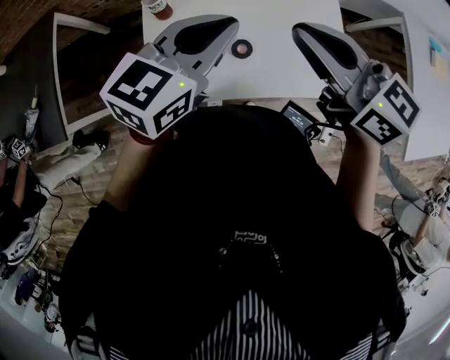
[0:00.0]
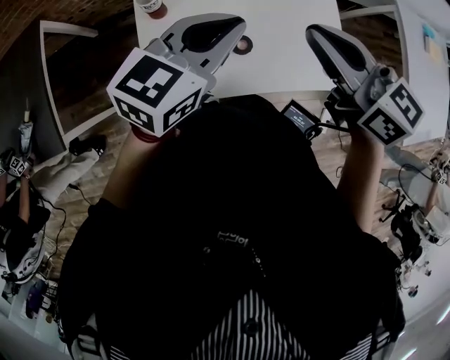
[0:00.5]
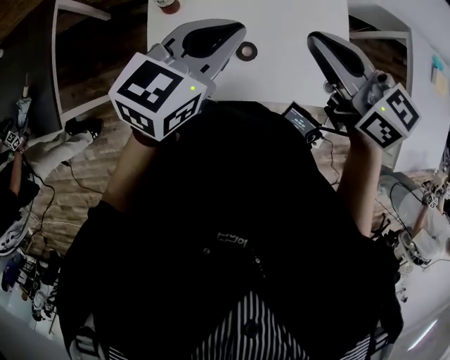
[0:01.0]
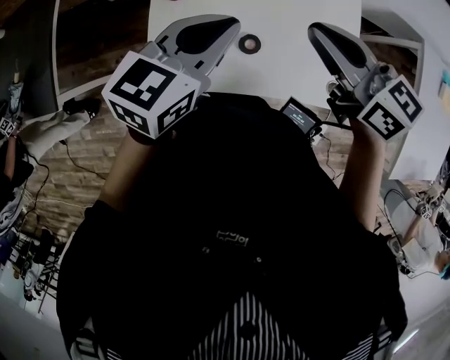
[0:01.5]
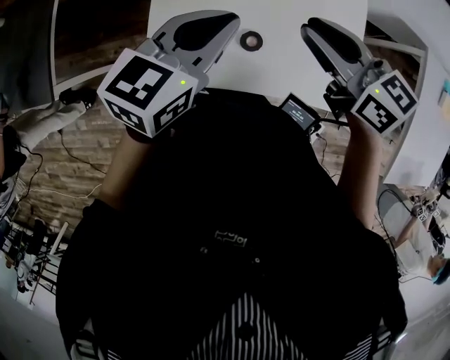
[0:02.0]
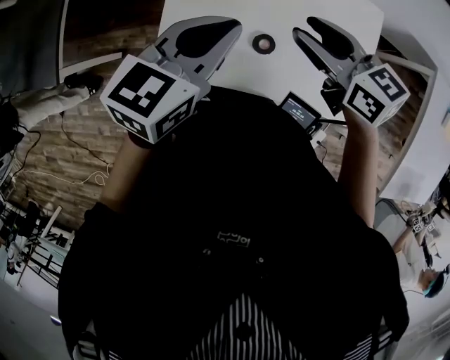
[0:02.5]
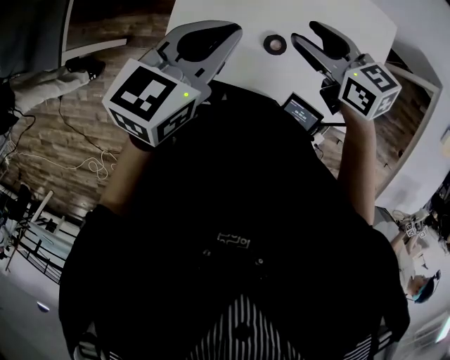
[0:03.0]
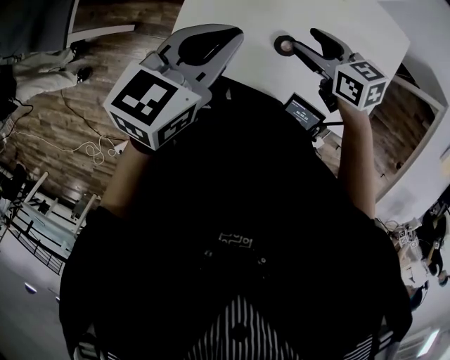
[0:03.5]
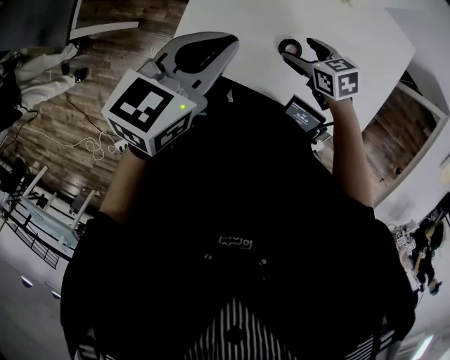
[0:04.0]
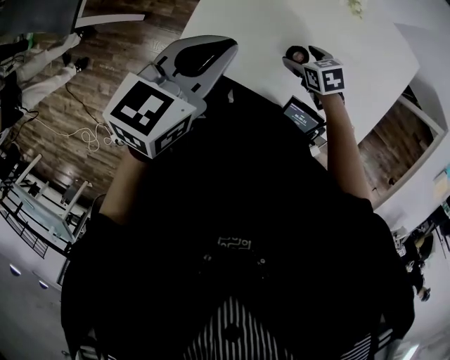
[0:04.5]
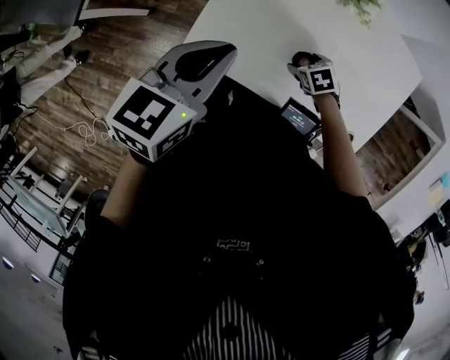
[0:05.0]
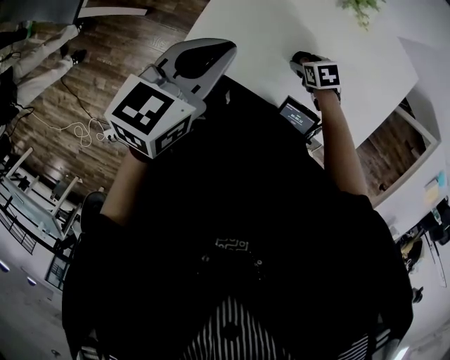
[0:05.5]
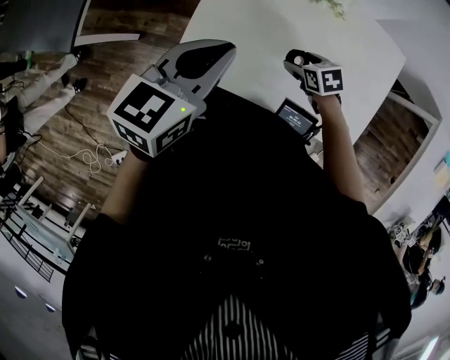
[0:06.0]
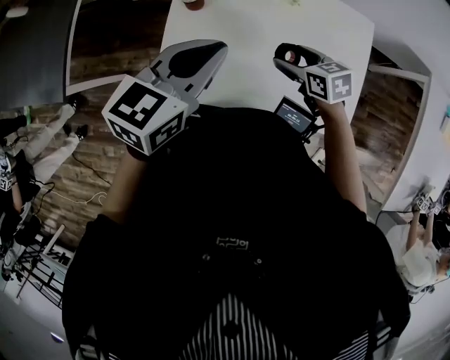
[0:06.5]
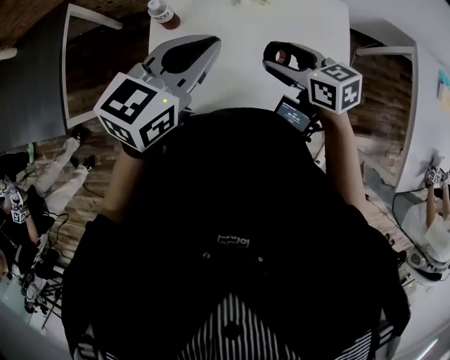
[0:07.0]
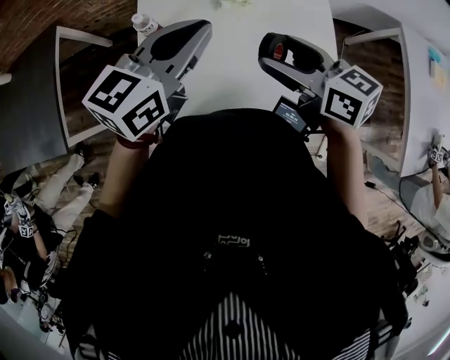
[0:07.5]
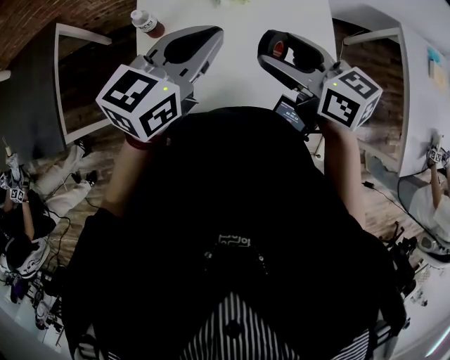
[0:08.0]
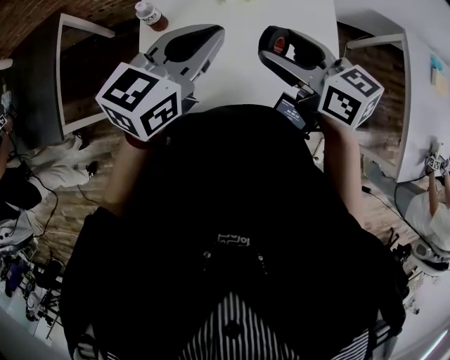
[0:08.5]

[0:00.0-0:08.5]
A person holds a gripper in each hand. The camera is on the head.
0:00.0 to 0:02.0: The right gripper heads downward, covering about 5 cm. The left gripper ends up approximately 5 cm from where it was.
0:02.0 to 0:04.0: The right gripper travels downward by approximately 25 cm, turns by approximately 30 degrees, and opens, while the left gripper goes some 10 cm backward.
0:04.0 to 0:06.5: The right gripper heads upward, covering roughly 5 cm.
0:06.5 to 0:08.5: The right gripper travels upward by roughly 20 cm, and changes its angle by roughly 30 degrees.

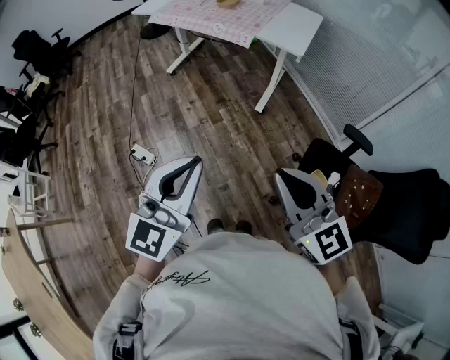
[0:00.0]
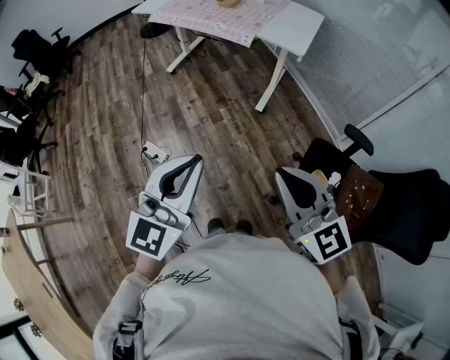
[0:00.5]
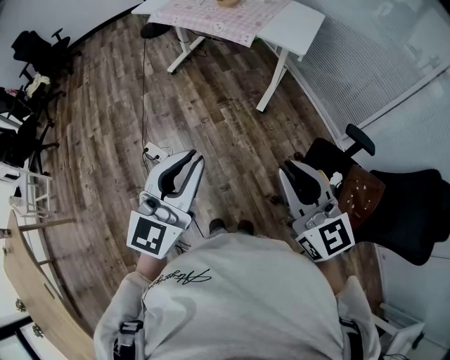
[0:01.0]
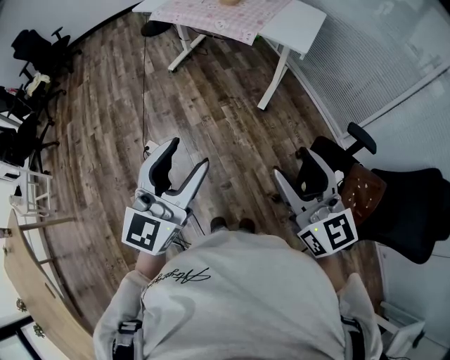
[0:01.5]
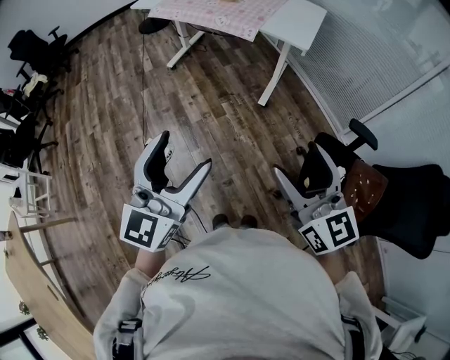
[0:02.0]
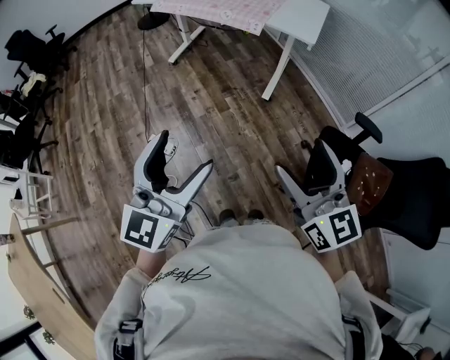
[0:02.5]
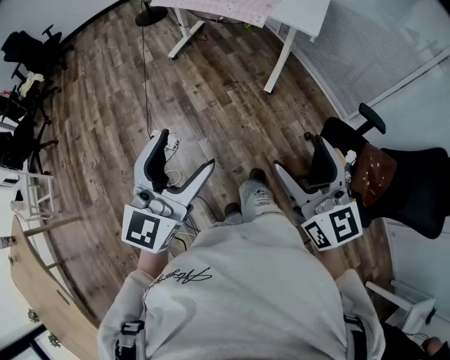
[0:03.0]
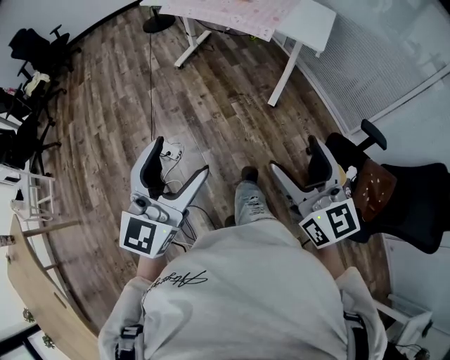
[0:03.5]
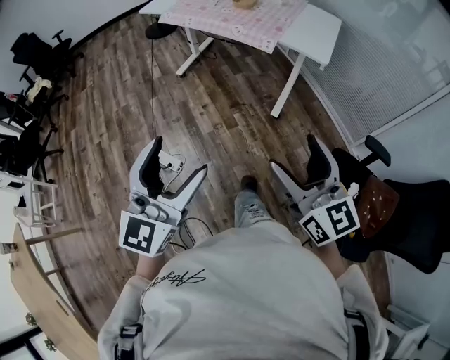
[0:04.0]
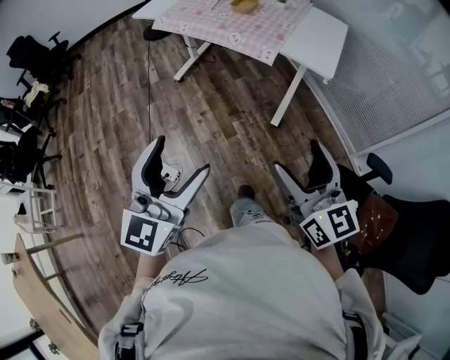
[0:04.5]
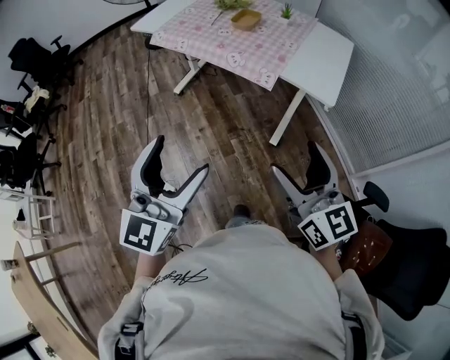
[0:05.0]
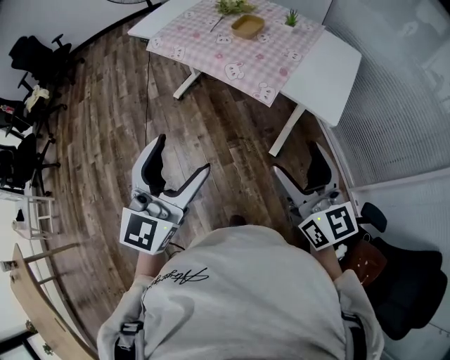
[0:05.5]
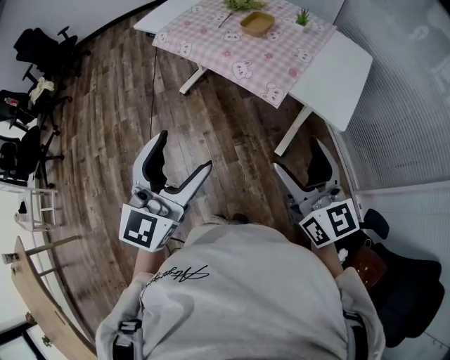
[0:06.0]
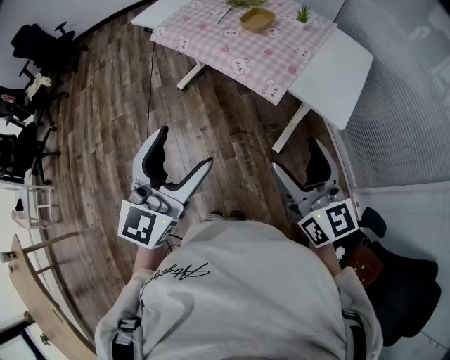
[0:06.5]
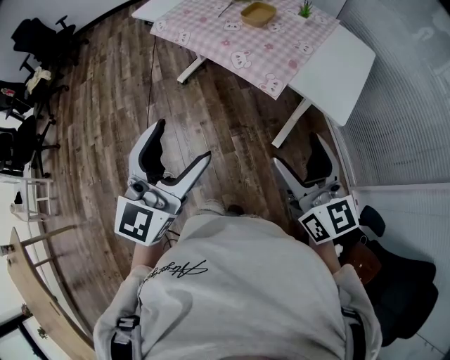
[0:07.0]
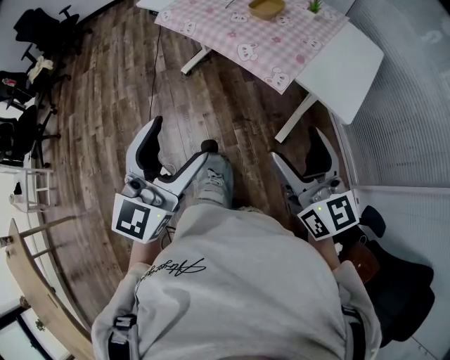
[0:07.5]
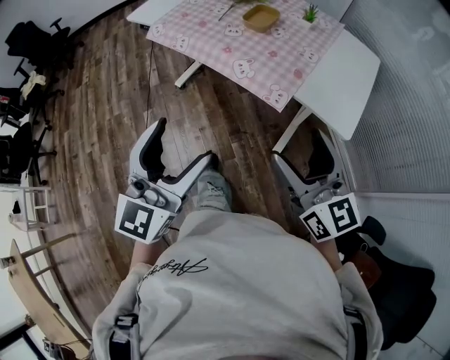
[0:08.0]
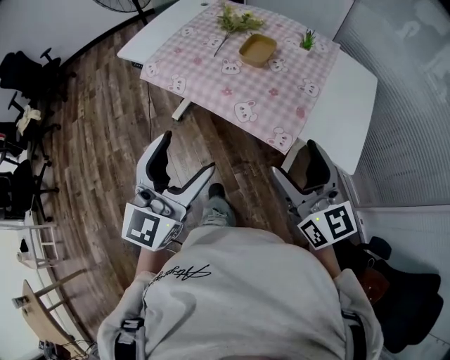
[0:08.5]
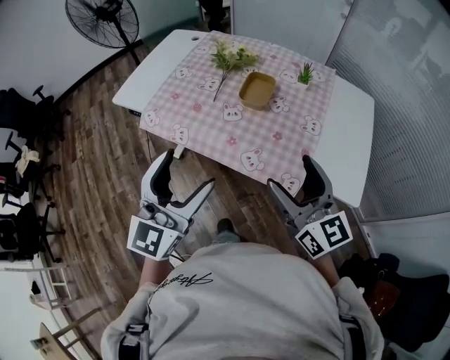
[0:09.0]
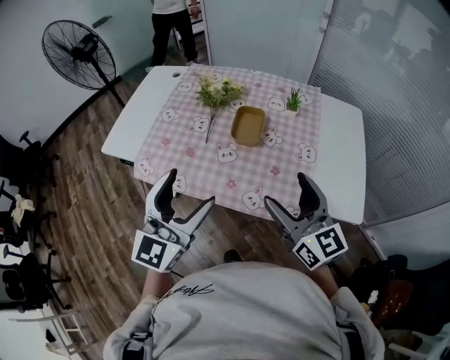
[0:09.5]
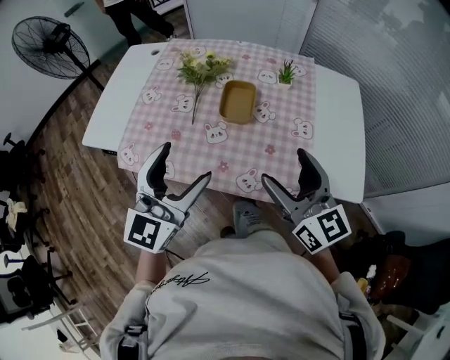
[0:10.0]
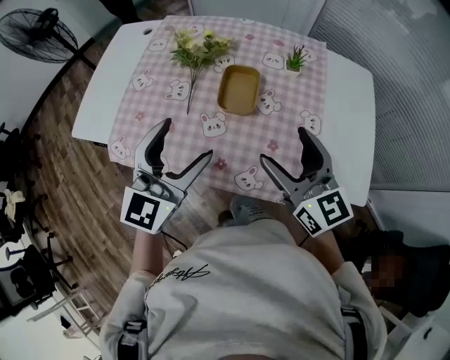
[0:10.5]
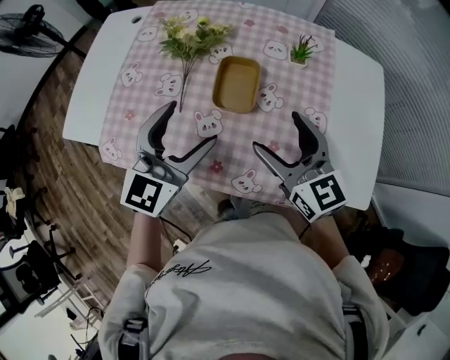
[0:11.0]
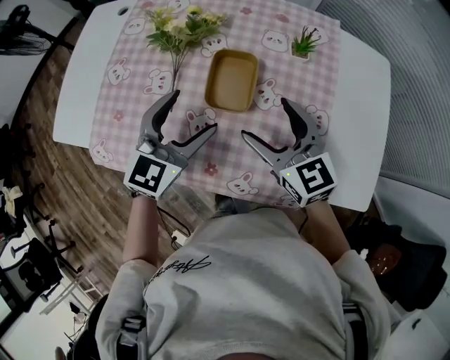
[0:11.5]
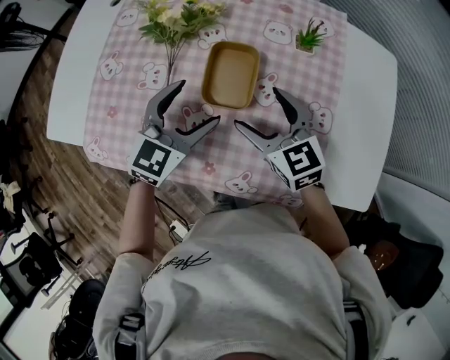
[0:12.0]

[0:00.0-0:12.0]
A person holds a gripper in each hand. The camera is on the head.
0:00.0 to 0:02.0: The left gripper moves some 5 cm, and opens up. The right gripper opens its fingers.
0:02.0 to 0:04.0: The left gripper moves to the left and forward, some 10 cm; the right gripper is displaced forward and to the left by about 10 cm.
0:04.0 to 0:06.0: Both grippers move forward, approximately 30 cm.
0:06.0 to 0:08.0: Both grippers travel together forward, roughly 5 cm.
0:08.0 to 0:10.0: Both grippers move forward, some 35 cm. The left gripper turns by some 20 degrees. Meanwhile the right gripper turns by roughly 20 degrees.
0:10.0 to 0:12.0: Both grippers move forward and downward, about 25 cm. The left gripper swivels some 30 degrees. Meanwhile the right gripper changes its angle by about 30 degrees.

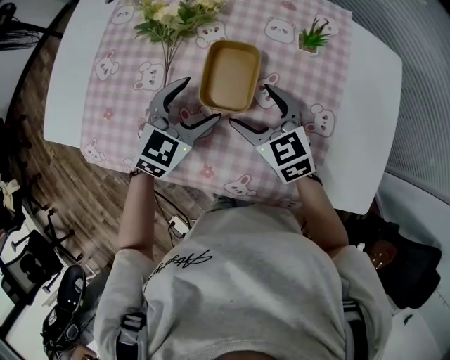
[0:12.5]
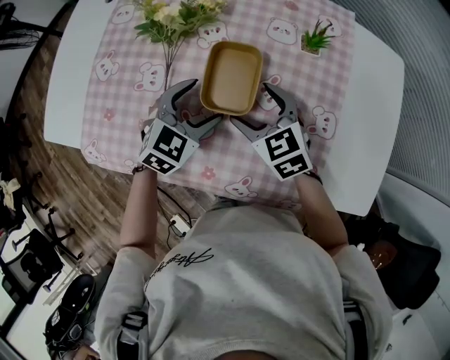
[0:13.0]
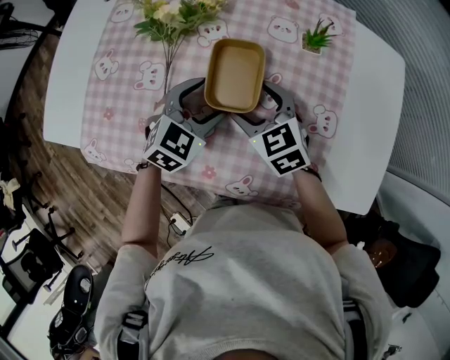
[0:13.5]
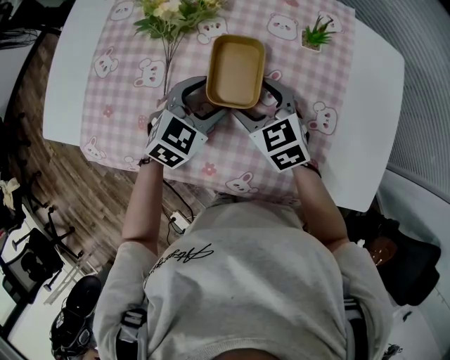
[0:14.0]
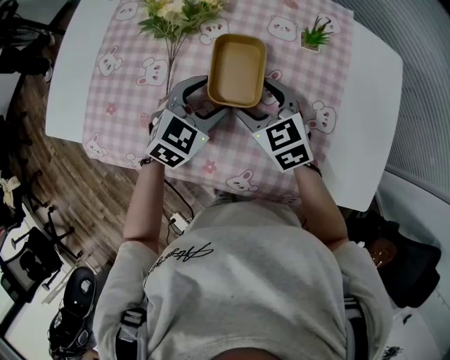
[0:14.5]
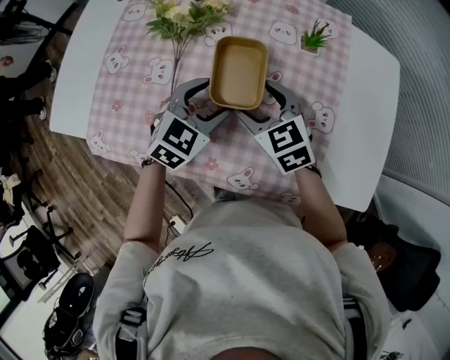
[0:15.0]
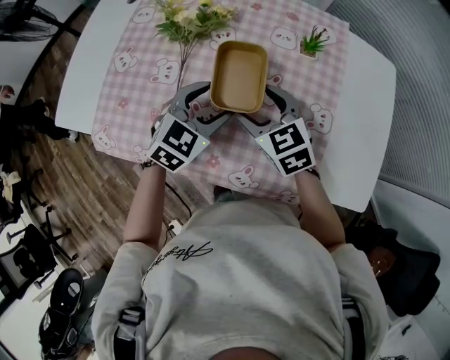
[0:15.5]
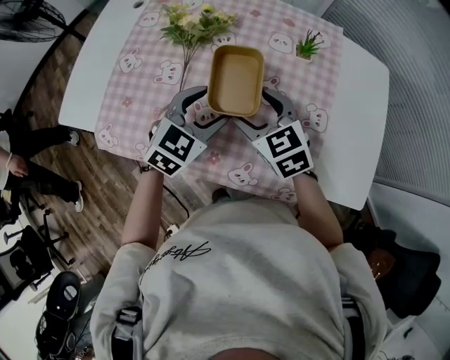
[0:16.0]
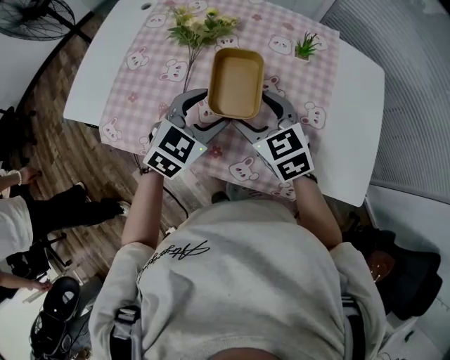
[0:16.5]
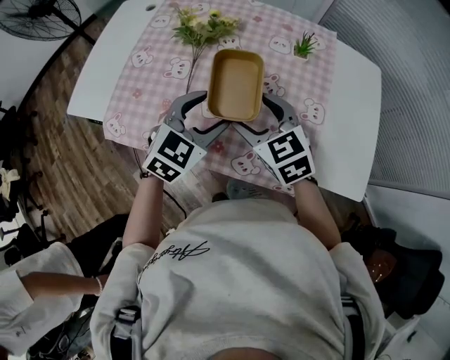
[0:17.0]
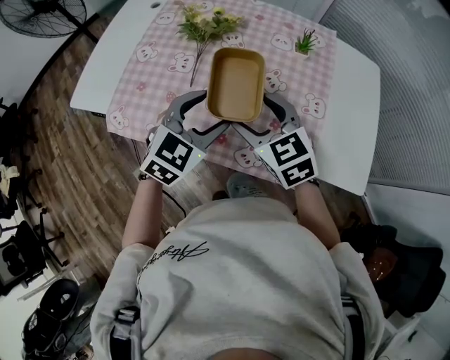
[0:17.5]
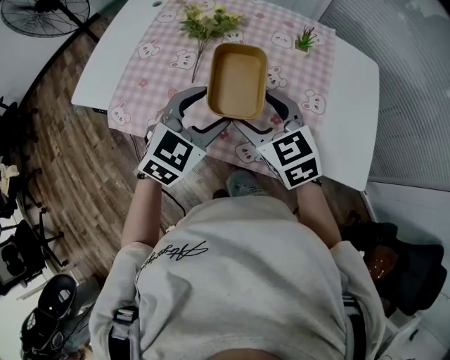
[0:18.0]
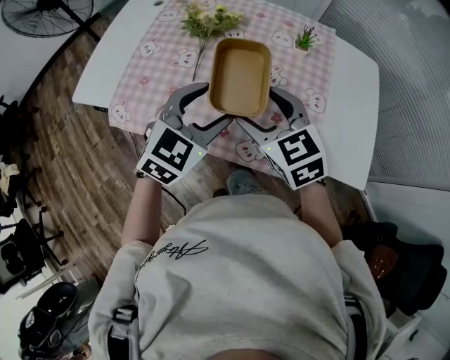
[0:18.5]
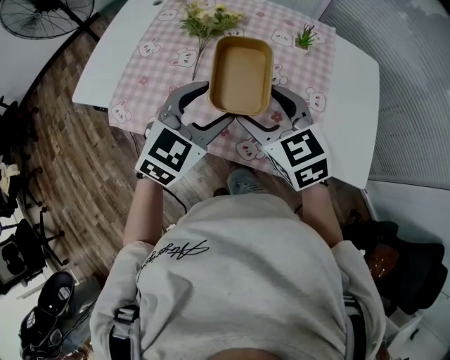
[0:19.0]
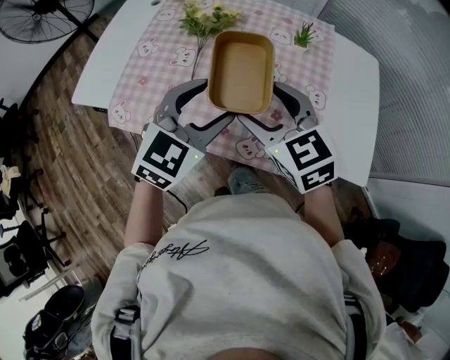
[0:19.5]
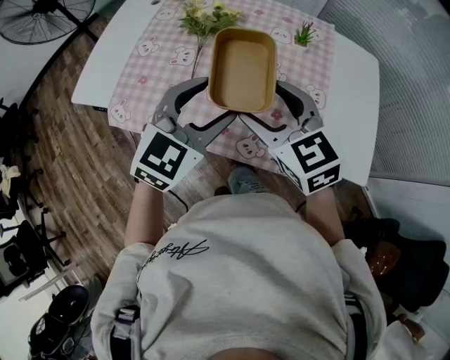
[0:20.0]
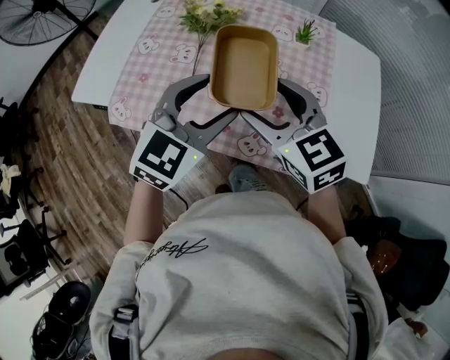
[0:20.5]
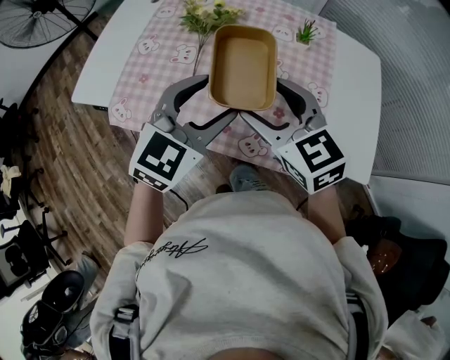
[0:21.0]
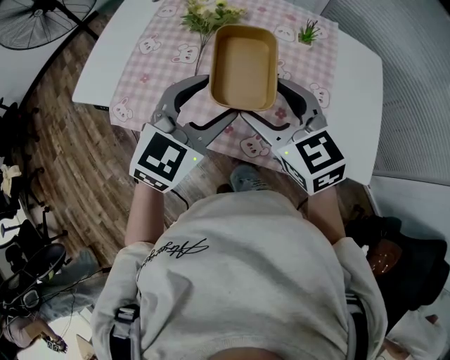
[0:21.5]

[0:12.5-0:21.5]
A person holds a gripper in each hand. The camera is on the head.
0:12.5 to 0:14.5: There are only small adjustments of the grippers.
0:14.5 to 0:17.0: The two grippers go roughly 15 cm backward and upward.
0:17.0 to 0:19.5: The two grippers go approximately 10 cm upward and backward.
0:19.5 to 0:21.5: Both grippers stay about where they are.
